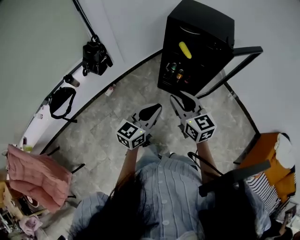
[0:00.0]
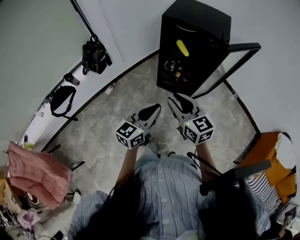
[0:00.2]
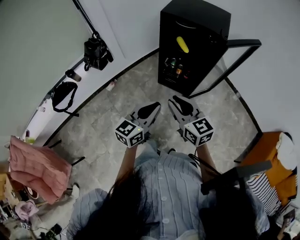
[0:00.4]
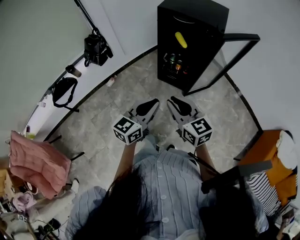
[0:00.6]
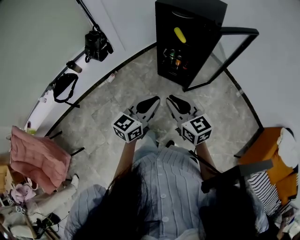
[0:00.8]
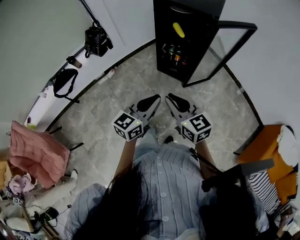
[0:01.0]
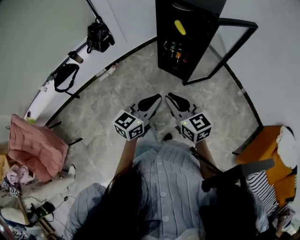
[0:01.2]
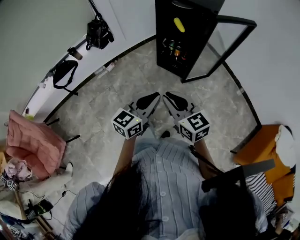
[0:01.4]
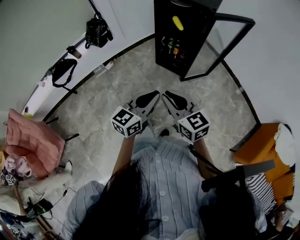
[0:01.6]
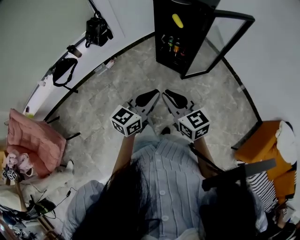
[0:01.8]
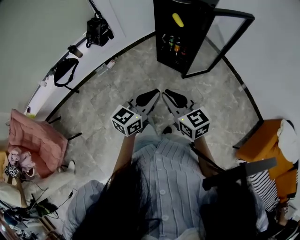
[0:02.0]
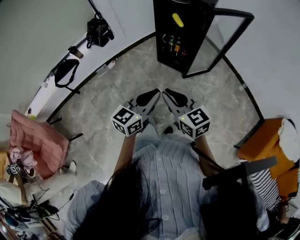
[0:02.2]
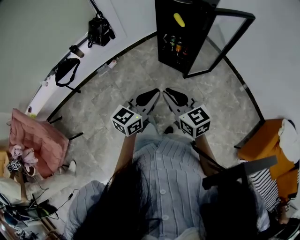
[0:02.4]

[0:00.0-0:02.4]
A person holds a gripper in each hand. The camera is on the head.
0.0 to 1.2 s: Both grippers move backward and to the right, some 20 cm.
1.2 to 2.4 s: Both grippers move backward, approximately 5 cm.

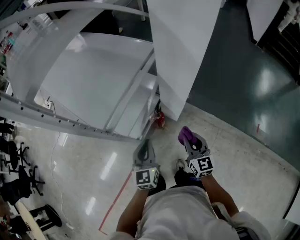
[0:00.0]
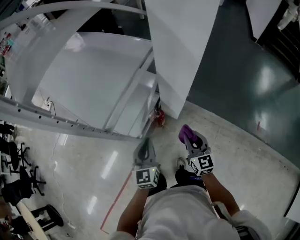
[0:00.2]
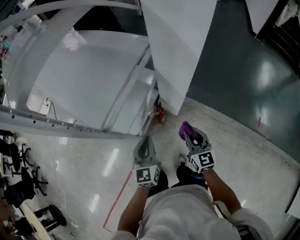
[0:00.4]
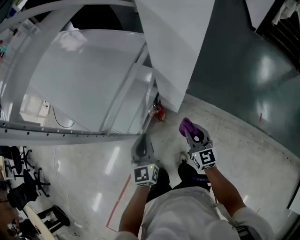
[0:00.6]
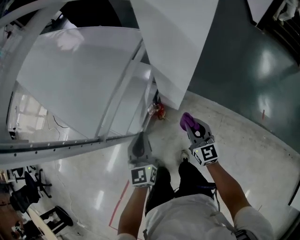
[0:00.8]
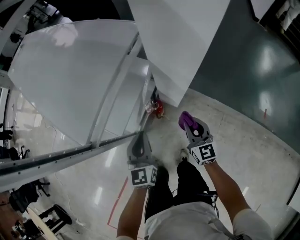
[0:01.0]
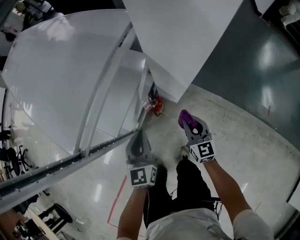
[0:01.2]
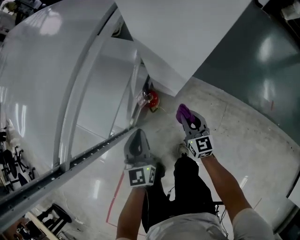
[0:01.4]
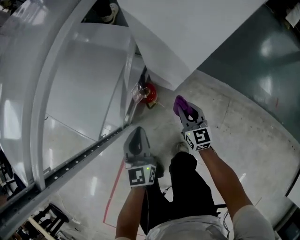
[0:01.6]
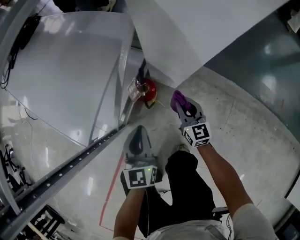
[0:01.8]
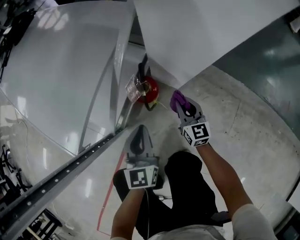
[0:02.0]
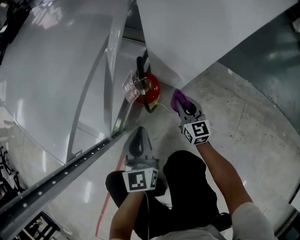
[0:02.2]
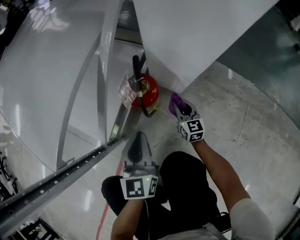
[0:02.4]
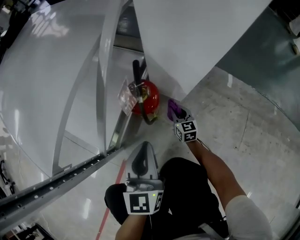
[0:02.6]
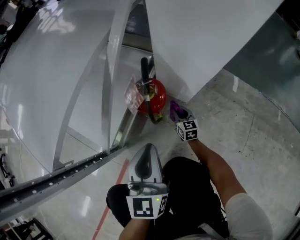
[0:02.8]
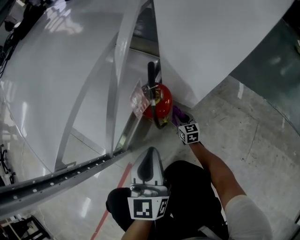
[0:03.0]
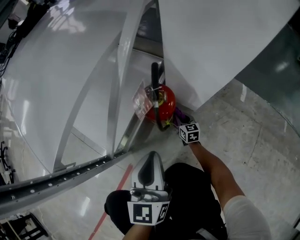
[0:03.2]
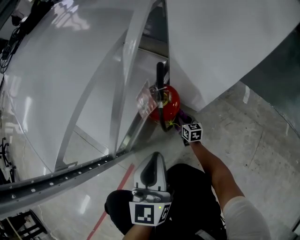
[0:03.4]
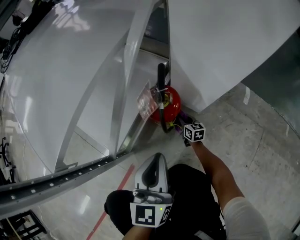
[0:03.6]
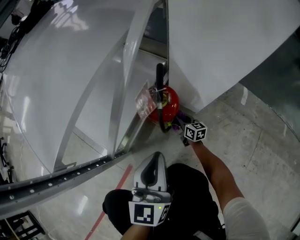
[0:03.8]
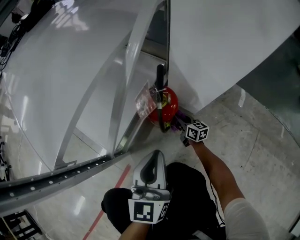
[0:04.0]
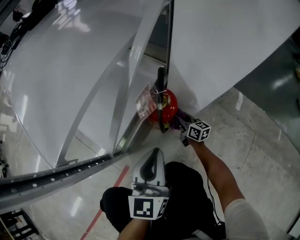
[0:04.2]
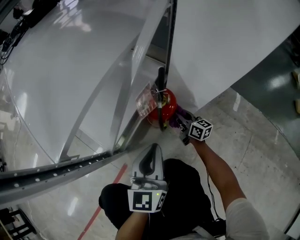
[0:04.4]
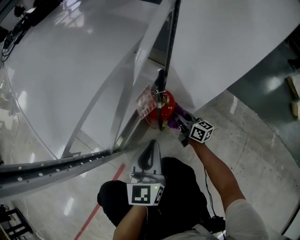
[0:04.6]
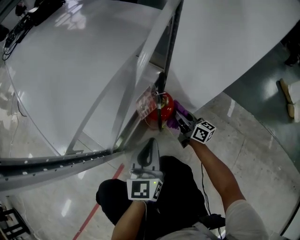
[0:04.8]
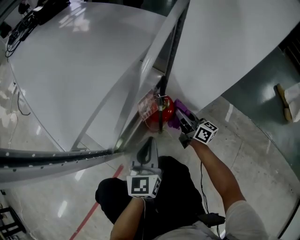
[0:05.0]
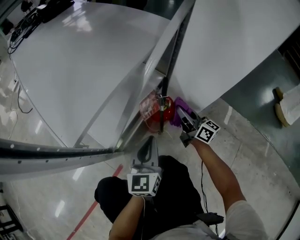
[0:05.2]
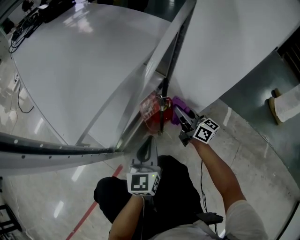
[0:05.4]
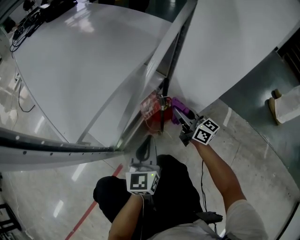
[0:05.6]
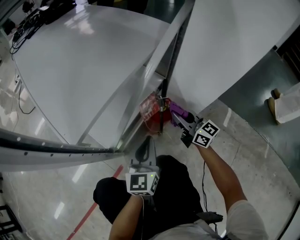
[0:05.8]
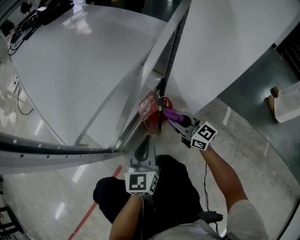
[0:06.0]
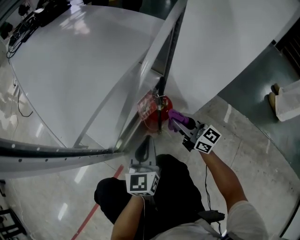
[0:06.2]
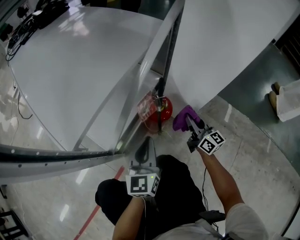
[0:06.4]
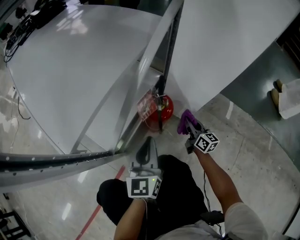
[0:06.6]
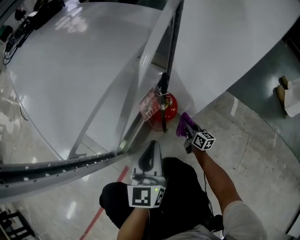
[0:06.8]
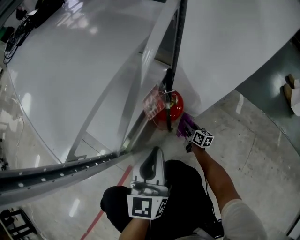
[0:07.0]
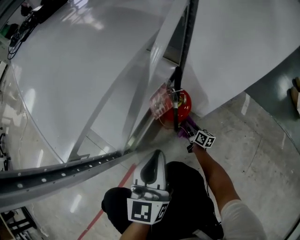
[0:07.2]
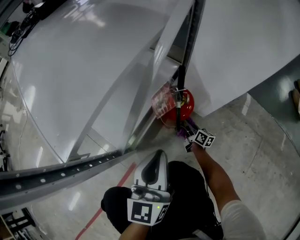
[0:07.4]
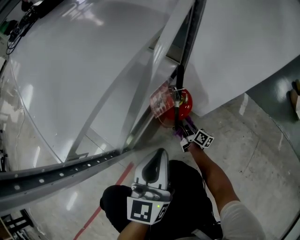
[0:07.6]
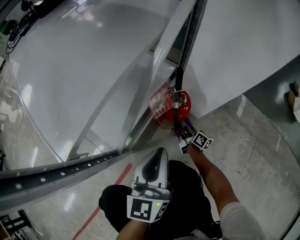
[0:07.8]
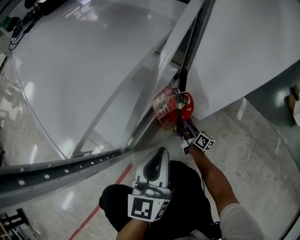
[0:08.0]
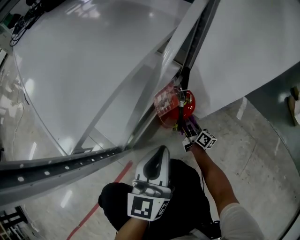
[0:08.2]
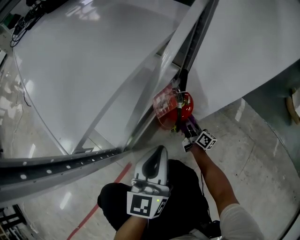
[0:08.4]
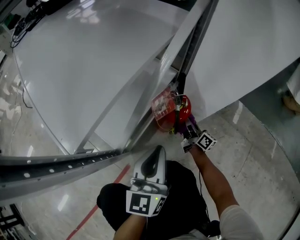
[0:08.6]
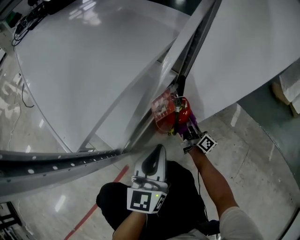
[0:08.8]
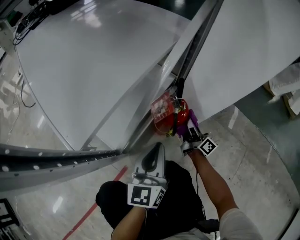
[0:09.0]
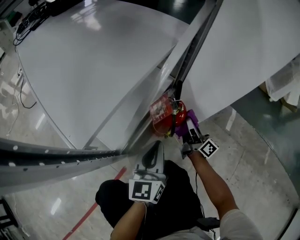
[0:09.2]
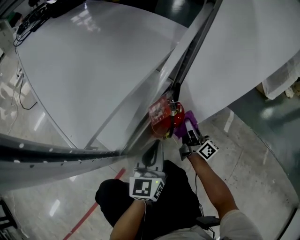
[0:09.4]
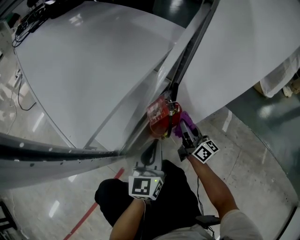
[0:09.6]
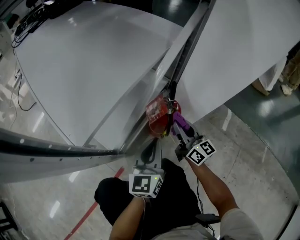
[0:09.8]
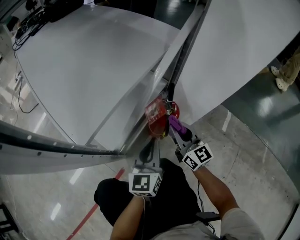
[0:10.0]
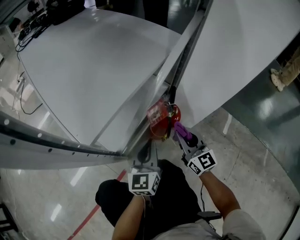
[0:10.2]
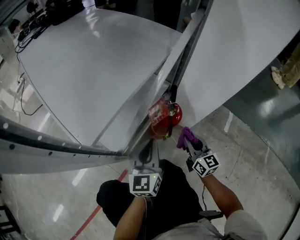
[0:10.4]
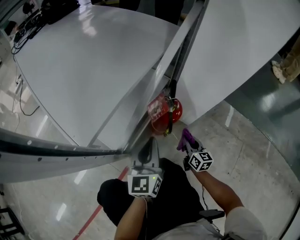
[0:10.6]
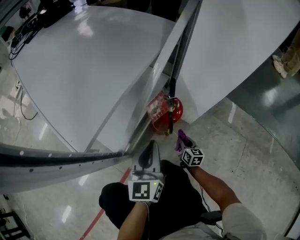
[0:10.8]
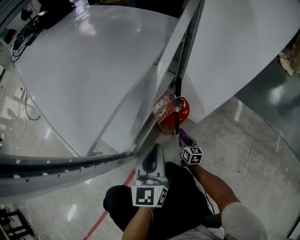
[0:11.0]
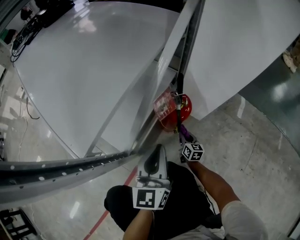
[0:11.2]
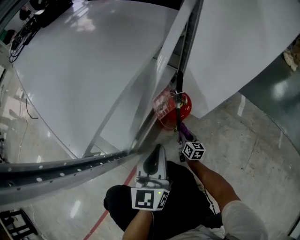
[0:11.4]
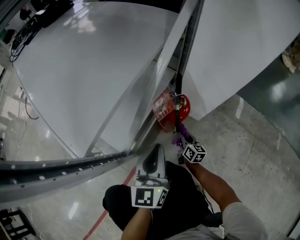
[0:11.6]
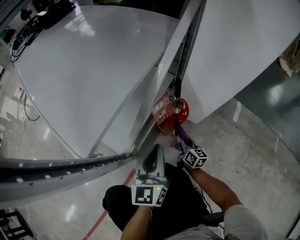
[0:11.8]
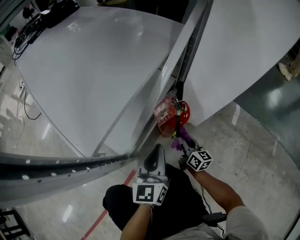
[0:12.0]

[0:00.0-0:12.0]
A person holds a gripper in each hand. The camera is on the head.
0.0 to 1.6 s: The two grippers go about 35 cm downward.
1.6 to 3.0 s: The left gripper heads downward, covering approximately 25 cm, while the right gripper moves downward, about 50 cm.
3.0 to 4.4 s: The right gripper shifts about 10 cm upward, and rotates some 30 degrees.
4.4 to 6.0 s: The right gripper heads upward, covering some 20 cm, and swivels roughly 30 degrees.
6.0 to 7.6 s: The right gripper is displaced downward by some 30 cm, and rolls clockwise, seen from behind, by roughly 50 degrees.
7.6 to 9.0 s: The right gripper is displaced upward by approximately 20 cm.
9.0 to 10.4 s: The right gripper heads backward and upward, covering roughly 10 cm, and rotates around the line of its fingers by some 40 degrees, counterclockwise from behind.
10.4 to 12.0 s: The right gripper heads downward, covering roughly 10 cm, and rotates roughly 20 degrees.

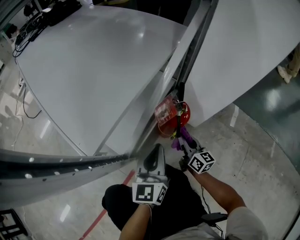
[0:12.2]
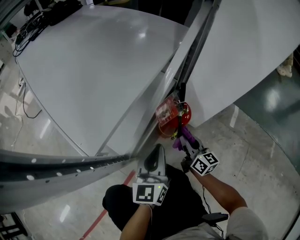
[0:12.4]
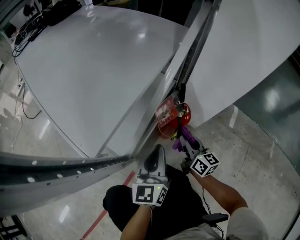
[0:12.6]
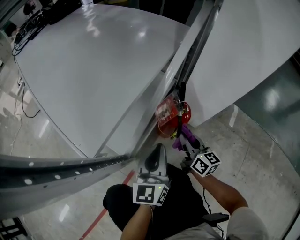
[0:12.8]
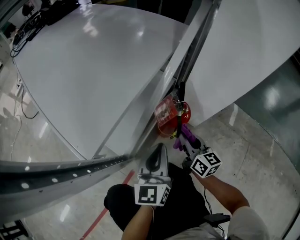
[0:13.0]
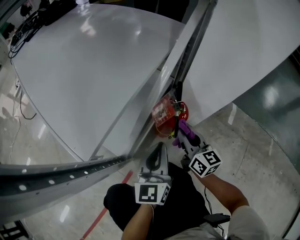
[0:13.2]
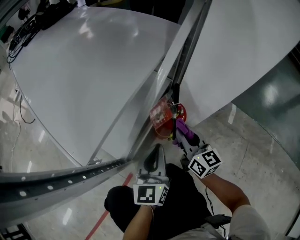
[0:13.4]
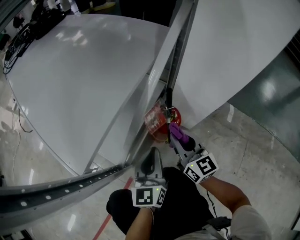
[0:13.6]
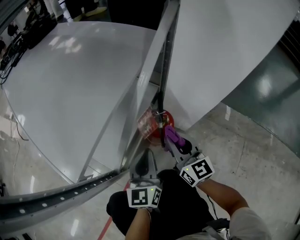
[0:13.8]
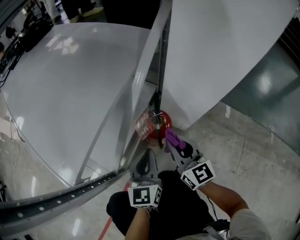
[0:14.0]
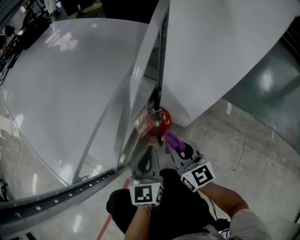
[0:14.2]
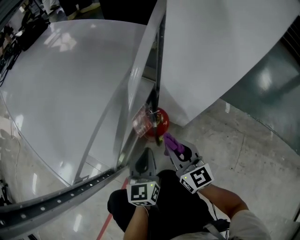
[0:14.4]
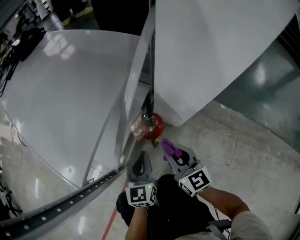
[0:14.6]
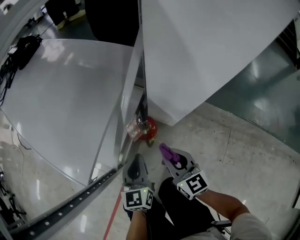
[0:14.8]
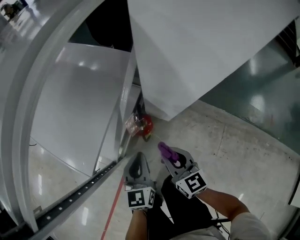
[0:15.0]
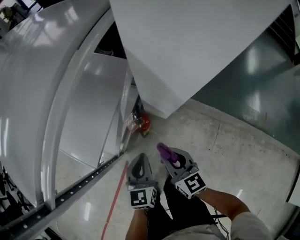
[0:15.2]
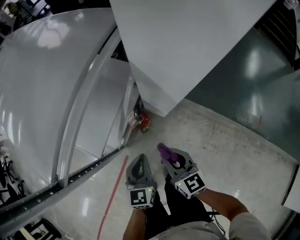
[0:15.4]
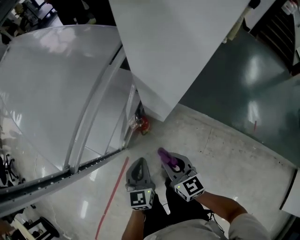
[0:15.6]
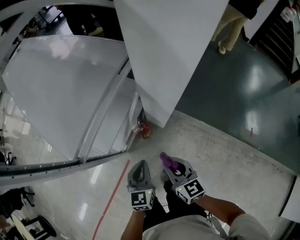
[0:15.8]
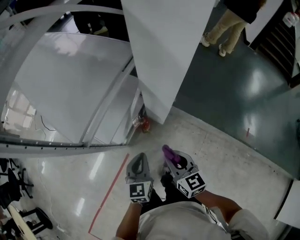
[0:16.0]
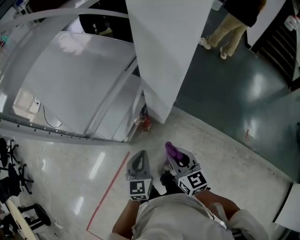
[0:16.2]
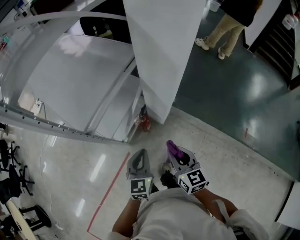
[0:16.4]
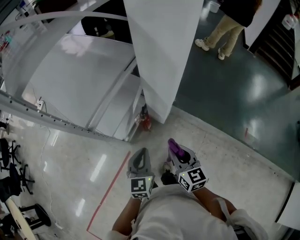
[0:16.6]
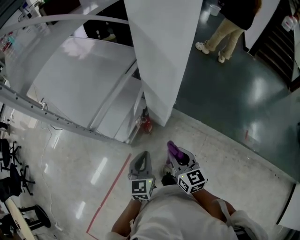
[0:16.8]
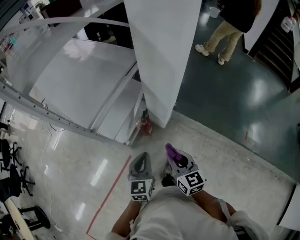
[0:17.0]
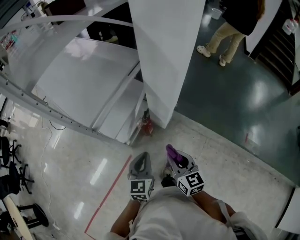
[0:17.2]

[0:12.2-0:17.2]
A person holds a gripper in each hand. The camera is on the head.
12.2 to 13.8 s: The right gripper goes roughly 15 cm upward, and turns by roughly 20 degrees.
13.8 to 15.6 s: The grippers both shift upward by some 40 cm. The left gripper rotates approximately 20 degrees.
15.6 to 17.2 s: Both grippers travel together upward and backward, about 20 cm.

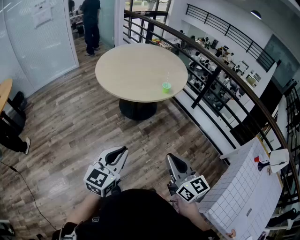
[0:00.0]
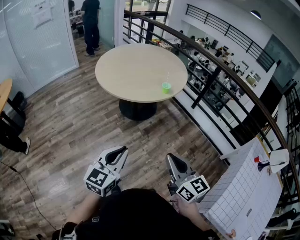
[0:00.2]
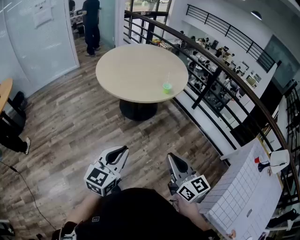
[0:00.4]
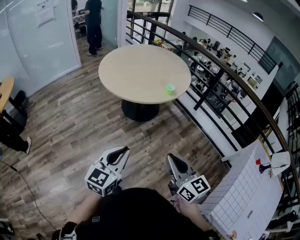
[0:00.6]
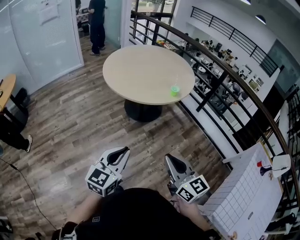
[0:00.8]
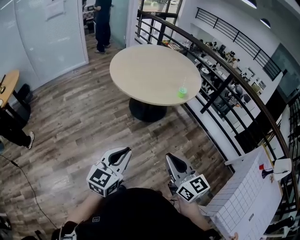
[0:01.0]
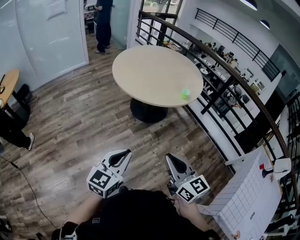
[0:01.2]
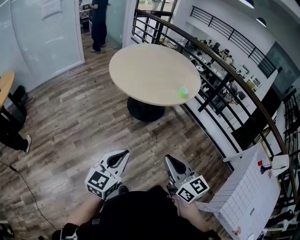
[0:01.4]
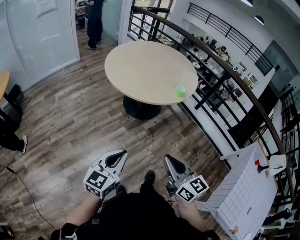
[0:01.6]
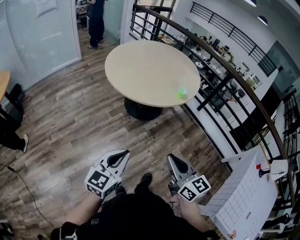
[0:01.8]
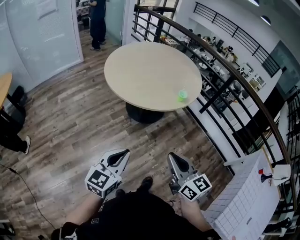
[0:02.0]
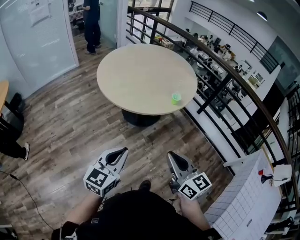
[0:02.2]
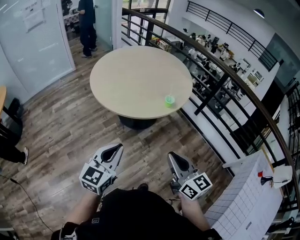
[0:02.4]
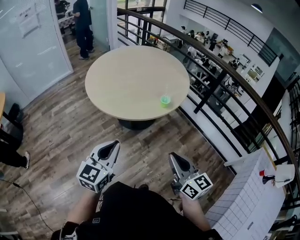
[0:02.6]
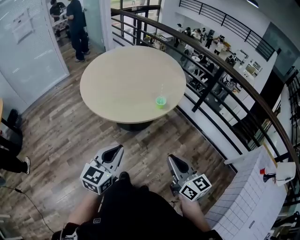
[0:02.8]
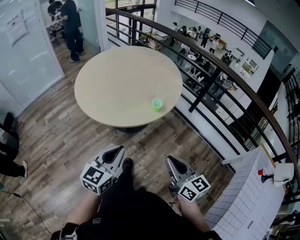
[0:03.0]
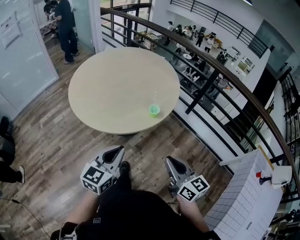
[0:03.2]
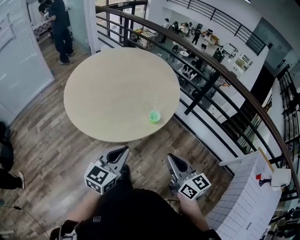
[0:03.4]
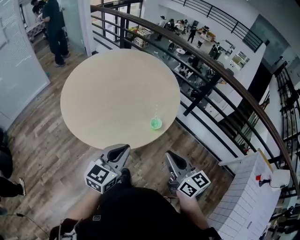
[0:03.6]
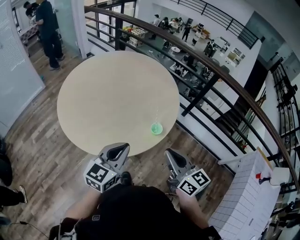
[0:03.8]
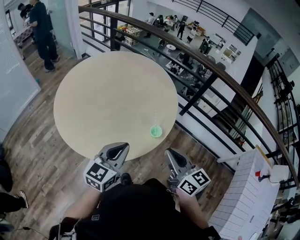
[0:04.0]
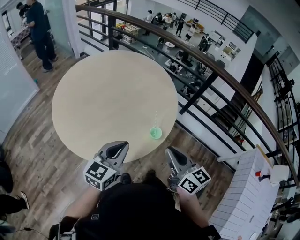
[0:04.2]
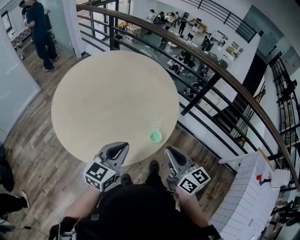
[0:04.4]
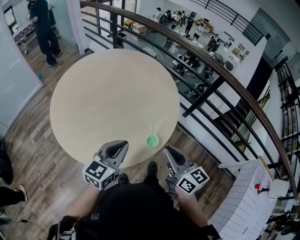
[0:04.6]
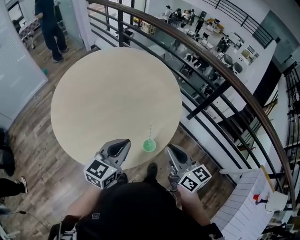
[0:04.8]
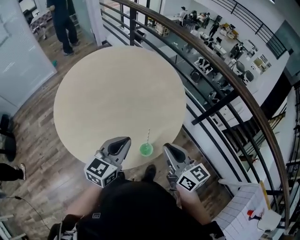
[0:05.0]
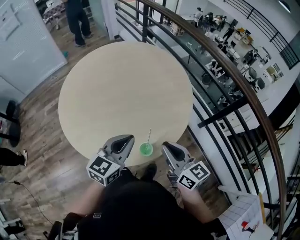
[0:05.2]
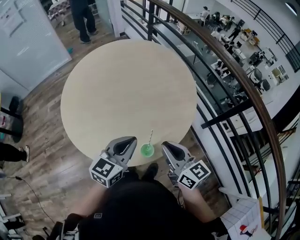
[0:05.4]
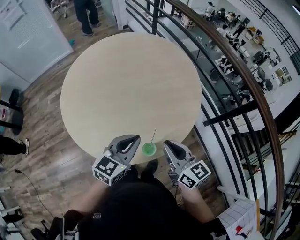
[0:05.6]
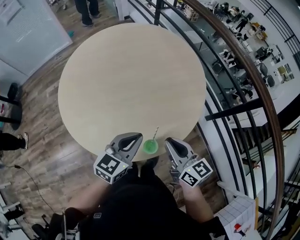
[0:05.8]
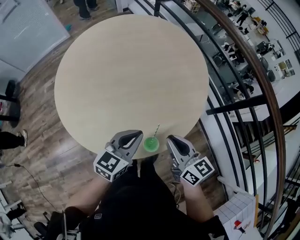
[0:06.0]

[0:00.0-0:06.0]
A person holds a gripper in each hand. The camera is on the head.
0.0 to 1.6 s: The two grippers go approximately 15 cm to the left.
1.6 to 3.0 s: The right gripper moves to the right and forward, about 30 cm, while the left gripper moves forward and to the right, roughly 30 cm.
3.0 to 4.4 s: Both grippers move forward, about 25 cm.
4.4 to 6.0 s: The left gripper moves to the right, forward and downward, roughly 15 cm, and changes its angle by about 20 degrees. The right gripper shifts some 20 cm forward, downward and to the right, and turns by about 30 degrees.
